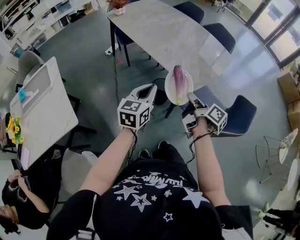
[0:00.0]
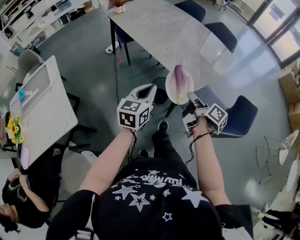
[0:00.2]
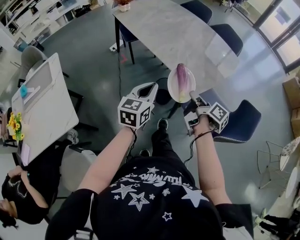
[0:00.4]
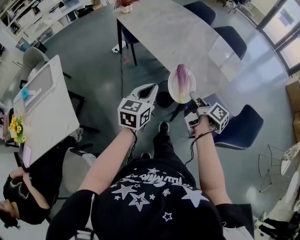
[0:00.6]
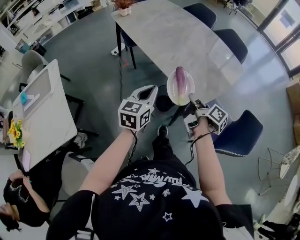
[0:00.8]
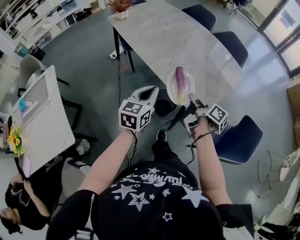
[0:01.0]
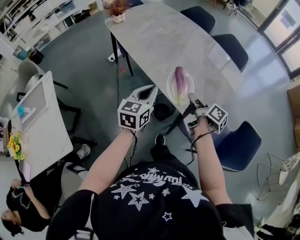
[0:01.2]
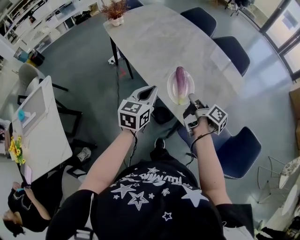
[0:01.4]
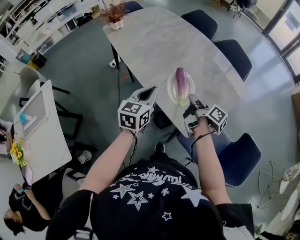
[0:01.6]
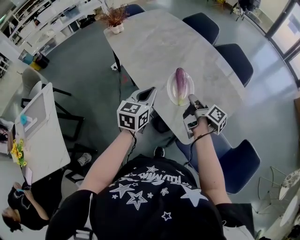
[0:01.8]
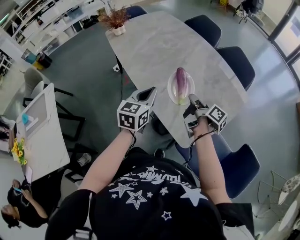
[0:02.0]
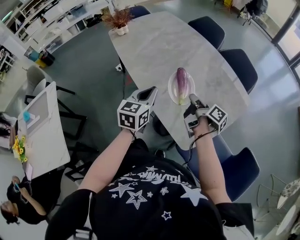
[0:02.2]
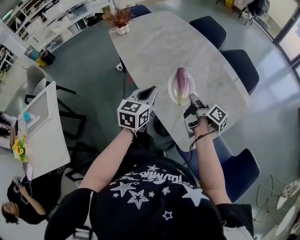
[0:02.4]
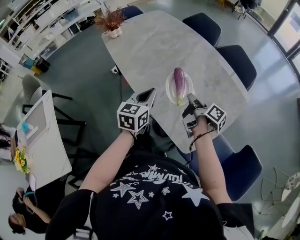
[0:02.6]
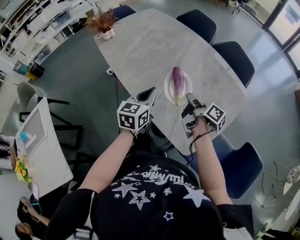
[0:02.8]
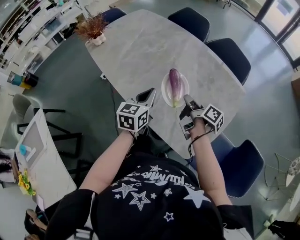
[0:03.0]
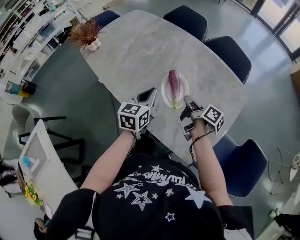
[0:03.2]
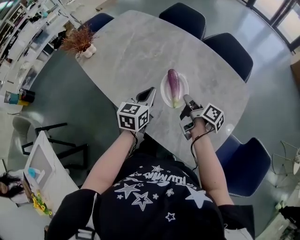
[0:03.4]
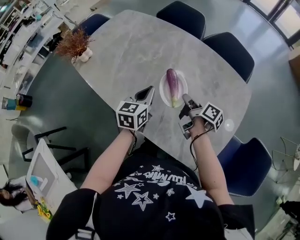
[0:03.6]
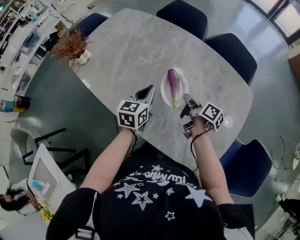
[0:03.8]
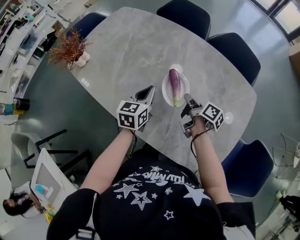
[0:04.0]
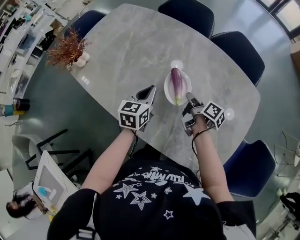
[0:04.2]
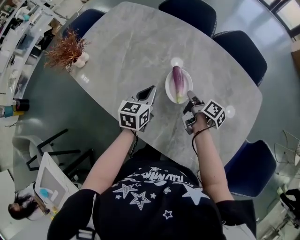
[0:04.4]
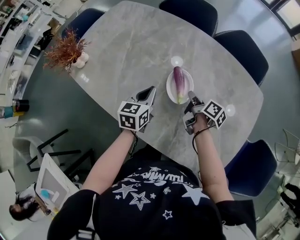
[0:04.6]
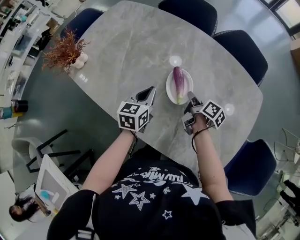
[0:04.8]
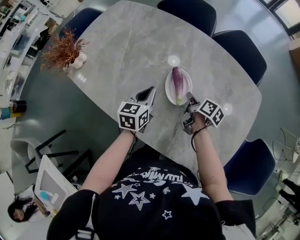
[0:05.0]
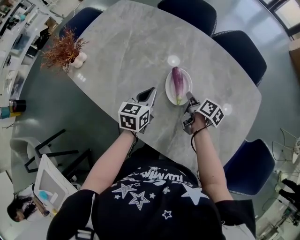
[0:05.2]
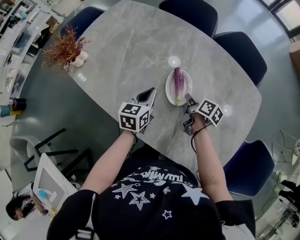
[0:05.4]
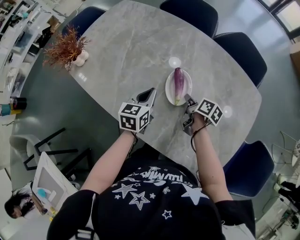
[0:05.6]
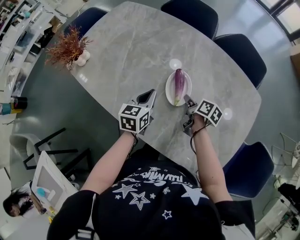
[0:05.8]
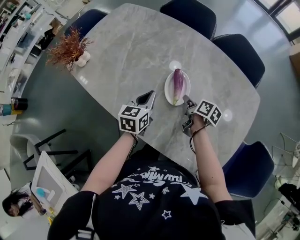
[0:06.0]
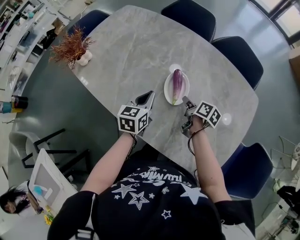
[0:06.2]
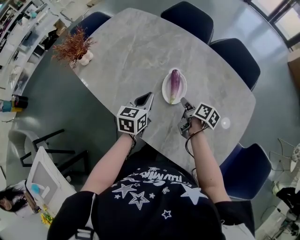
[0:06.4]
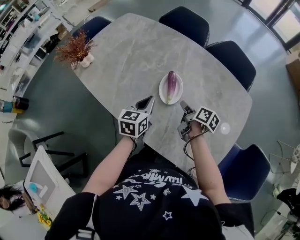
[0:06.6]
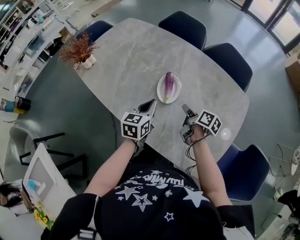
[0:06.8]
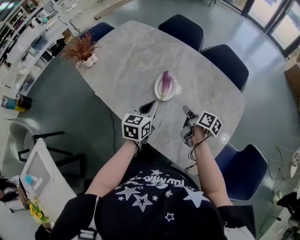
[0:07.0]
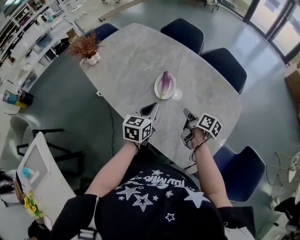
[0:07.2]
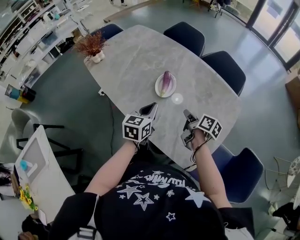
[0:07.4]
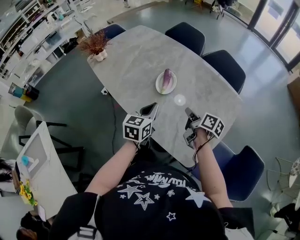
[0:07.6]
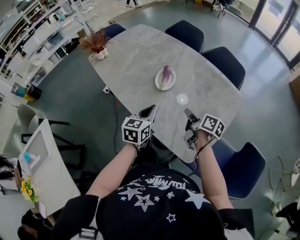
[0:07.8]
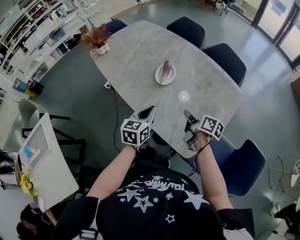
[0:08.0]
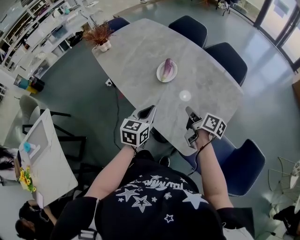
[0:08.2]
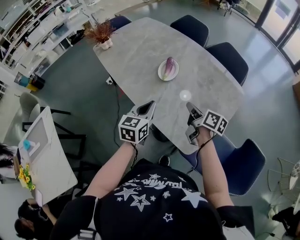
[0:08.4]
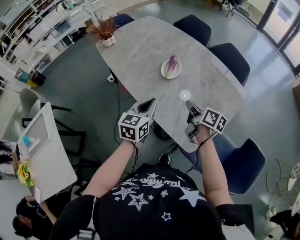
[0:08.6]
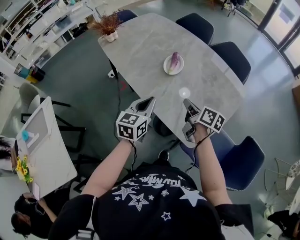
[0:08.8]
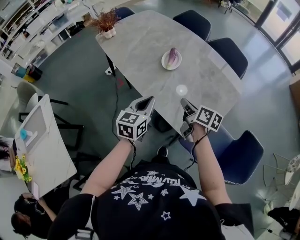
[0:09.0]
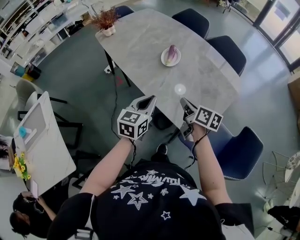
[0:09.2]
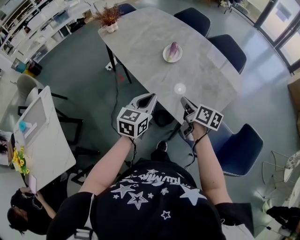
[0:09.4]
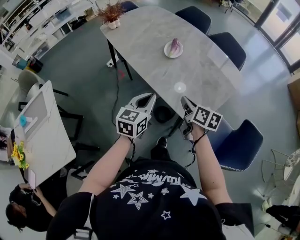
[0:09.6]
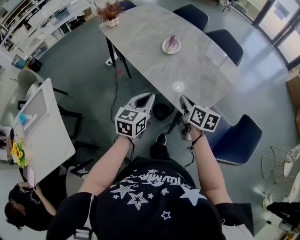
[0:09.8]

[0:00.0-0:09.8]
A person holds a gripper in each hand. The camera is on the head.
0:00.0 to 0:01.4: The left gripper ends up approximately 20 cm from where it was.
0:01.4 to 0:02.8: The left gripper moves roughly 15 cm.
0:02.8 to 0:04.2: The left gripper shifts by some 25 cm.
0:05.6 to 0:07.0: The left gripper moves some 15 cm.
0:07.0 to 0:08.4: The left gripper moves roughly 15 cm.
0:08.4 to 0:09.8: The left gripper changes place by some 15 cm.

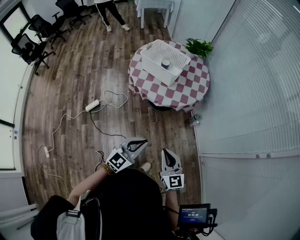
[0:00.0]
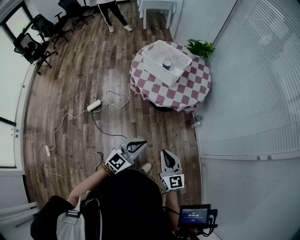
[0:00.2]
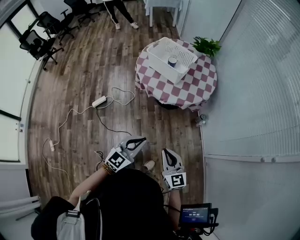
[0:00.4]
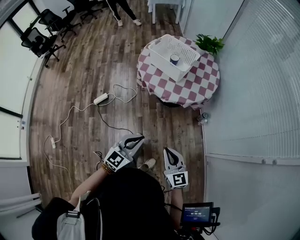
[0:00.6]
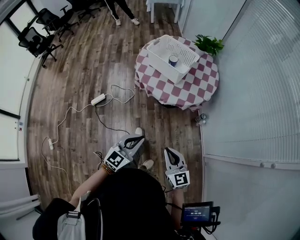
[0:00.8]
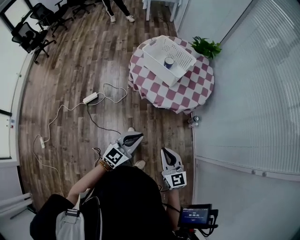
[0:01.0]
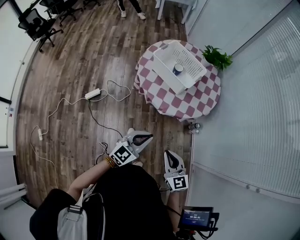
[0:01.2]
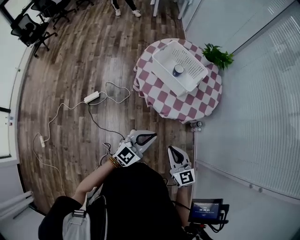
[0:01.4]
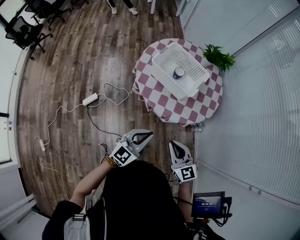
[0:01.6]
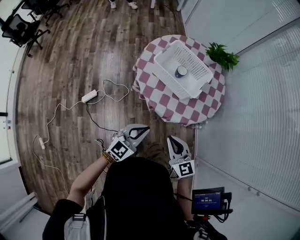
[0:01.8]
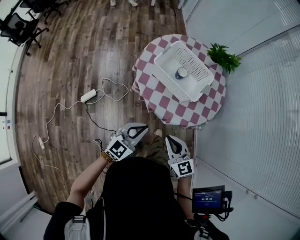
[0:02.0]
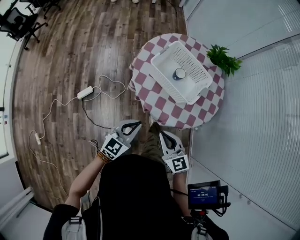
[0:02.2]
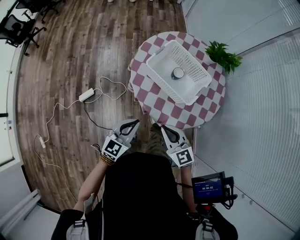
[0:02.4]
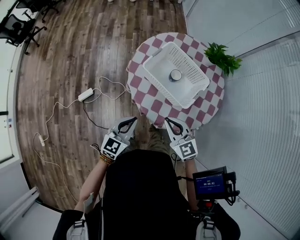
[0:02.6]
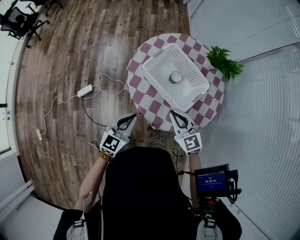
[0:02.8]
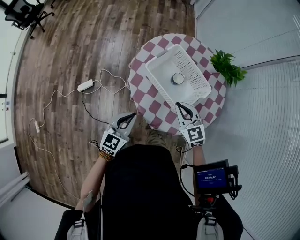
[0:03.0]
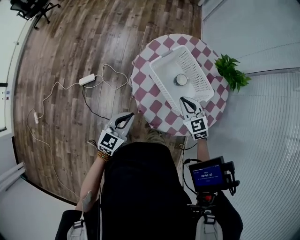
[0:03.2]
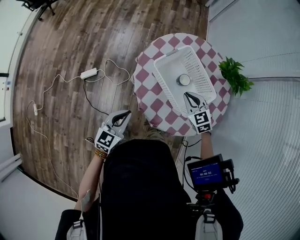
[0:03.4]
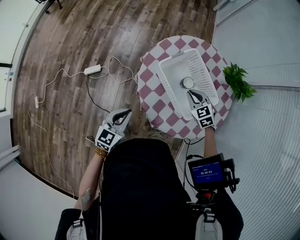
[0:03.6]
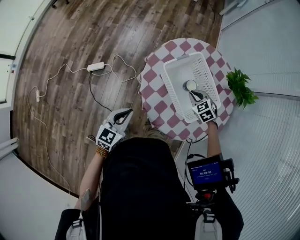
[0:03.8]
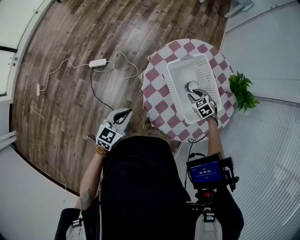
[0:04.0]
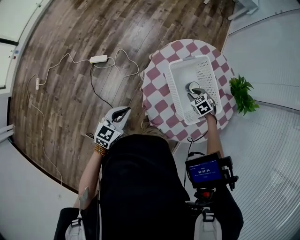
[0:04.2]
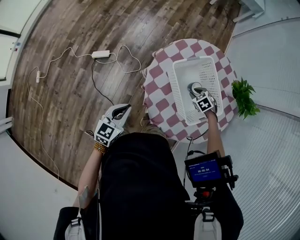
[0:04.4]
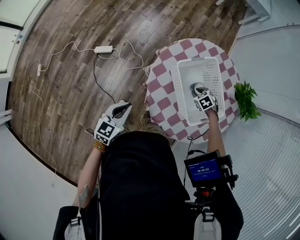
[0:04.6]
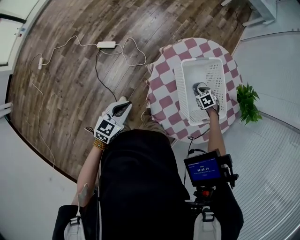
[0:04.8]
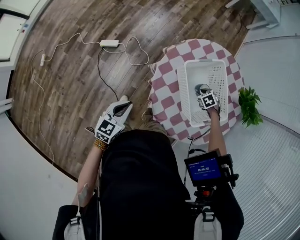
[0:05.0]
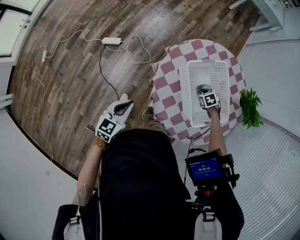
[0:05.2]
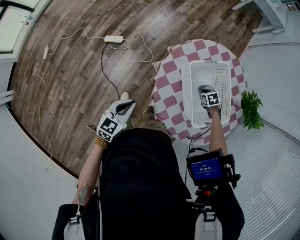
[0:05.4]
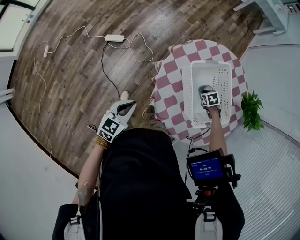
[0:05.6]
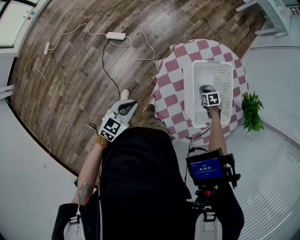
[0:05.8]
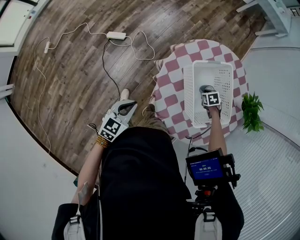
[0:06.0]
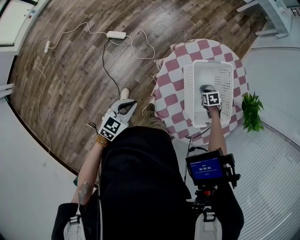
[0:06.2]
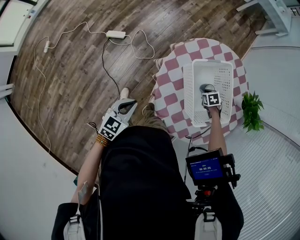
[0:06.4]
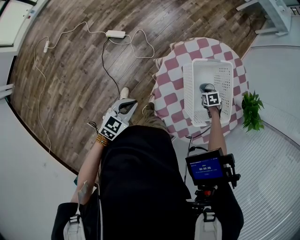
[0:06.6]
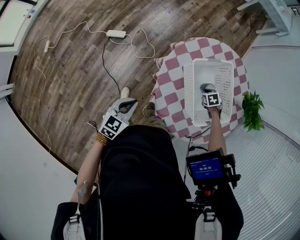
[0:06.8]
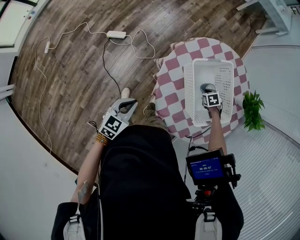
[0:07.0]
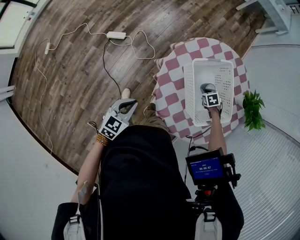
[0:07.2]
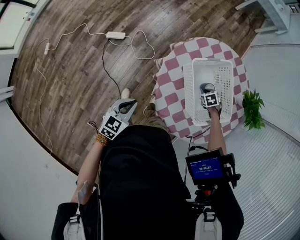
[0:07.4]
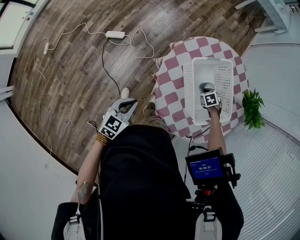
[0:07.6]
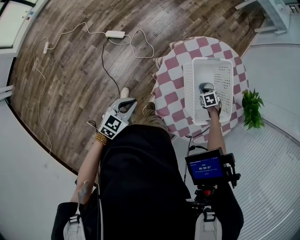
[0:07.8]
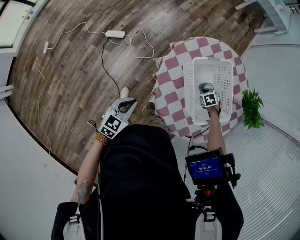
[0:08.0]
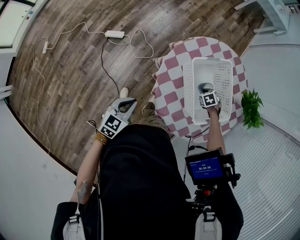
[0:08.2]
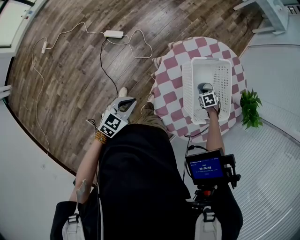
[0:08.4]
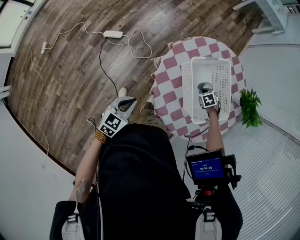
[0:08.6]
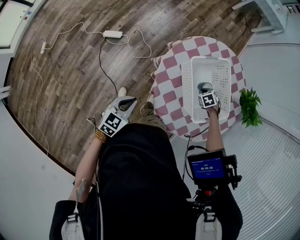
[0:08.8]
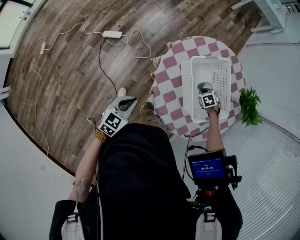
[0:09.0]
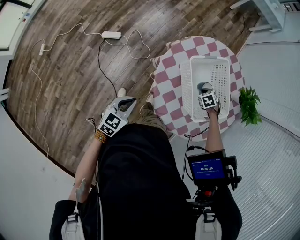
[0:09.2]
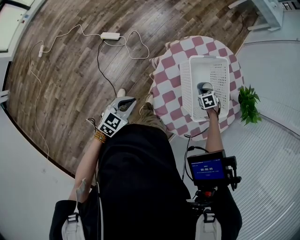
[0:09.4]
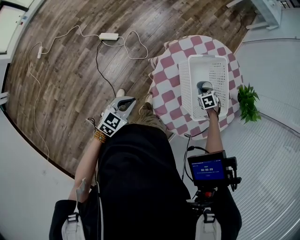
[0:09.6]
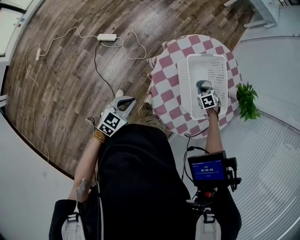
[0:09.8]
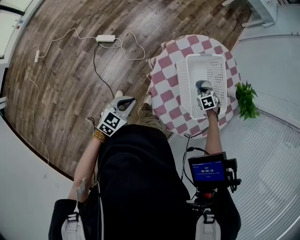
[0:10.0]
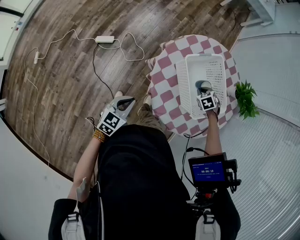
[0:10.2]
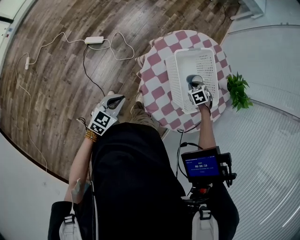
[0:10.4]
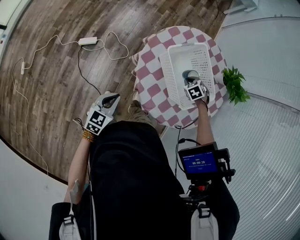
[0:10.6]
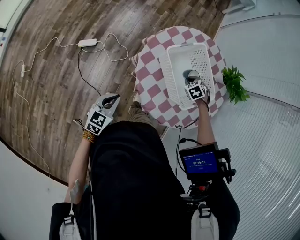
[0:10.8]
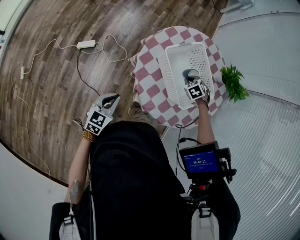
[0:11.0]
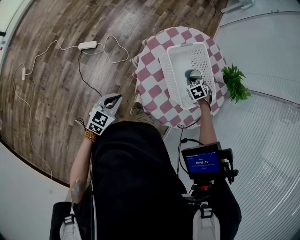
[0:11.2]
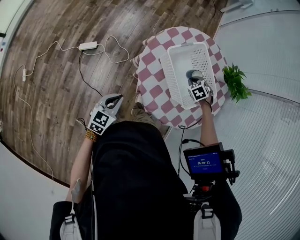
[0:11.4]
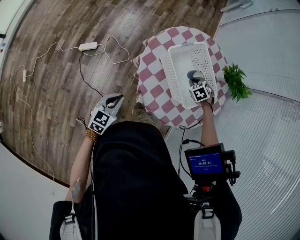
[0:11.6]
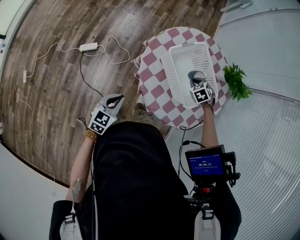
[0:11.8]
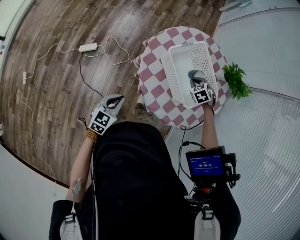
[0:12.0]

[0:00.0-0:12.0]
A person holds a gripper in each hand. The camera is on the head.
0:00.0 to 0:01.6: The grippers both shift forward by some 20 cm.
0:01.6 to 0:03.0: The right gripper goes some 30 cm forward, and swivels approximately 20 degrees; the left gripper shifts some 20 cm forward, and turns by about 30 degrees.
0:03.0 to 0:04.4: The right gripper moves downward and forward, approximately 25 cm, points its fingers some 50 degrees further downward, and opens its fingers. The left gripper shifts approximately 5 cm to the left, and changes its angle by some 20 degrees.
0:04.4 to 0:06.0: The left gripper moves about 5 cm. The right gripper travels downward by some 5 cm.
0:06.0 to 0:09.0: The grippers move only a little.
0:09.0 to 0:10.4: The right gripper heads upward, covering some 5 cm.
0:10.4 to 0:12.0: The right gripper travels upward by roughly 5 cm.

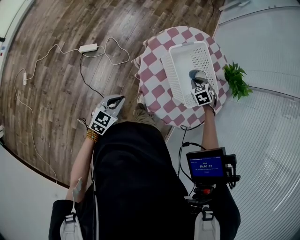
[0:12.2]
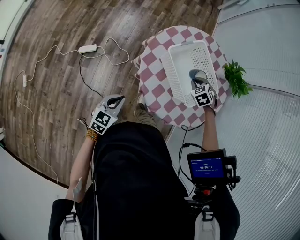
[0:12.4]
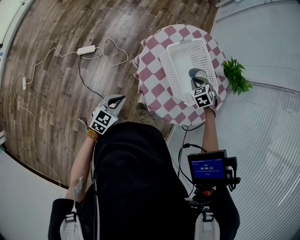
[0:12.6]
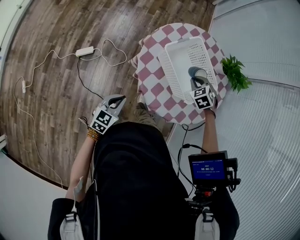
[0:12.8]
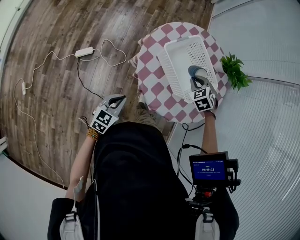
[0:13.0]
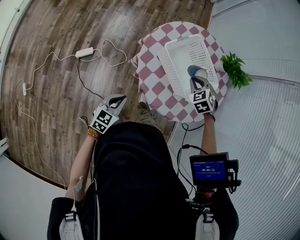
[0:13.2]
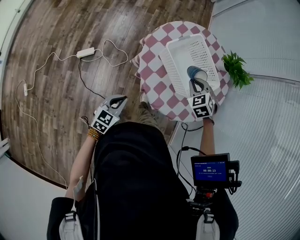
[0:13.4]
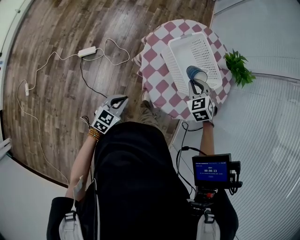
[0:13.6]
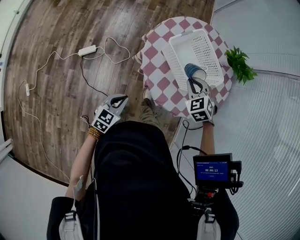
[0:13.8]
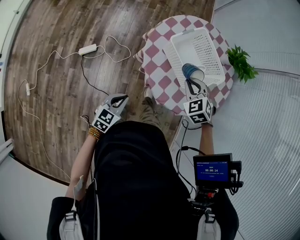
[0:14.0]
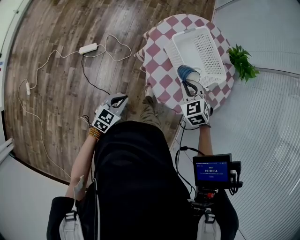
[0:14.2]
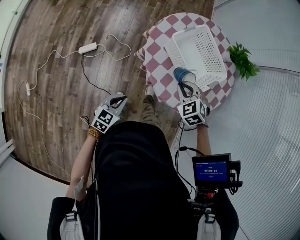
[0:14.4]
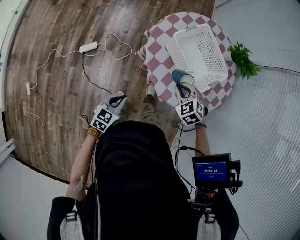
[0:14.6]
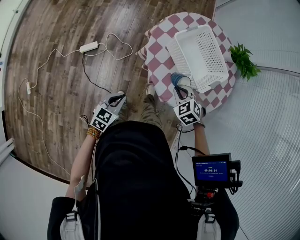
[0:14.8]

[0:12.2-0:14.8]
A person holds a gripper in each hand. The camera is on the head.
0:12.2 to 0:13.4: The right gripper moves upward and backward, roughly 10 cm.
0:13.4 to 0:14.8: The right gripper goes some 15 cm backward, to the left and downward; the left gripper moves some 5 cm.
